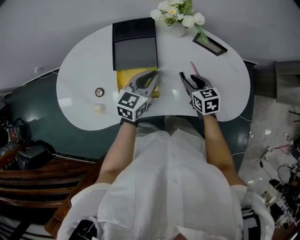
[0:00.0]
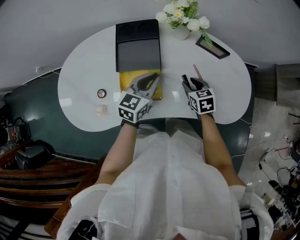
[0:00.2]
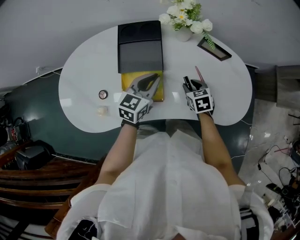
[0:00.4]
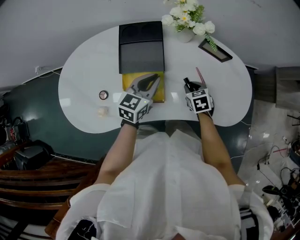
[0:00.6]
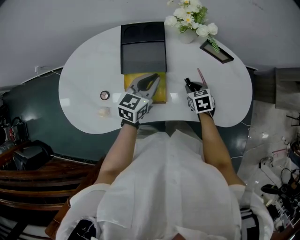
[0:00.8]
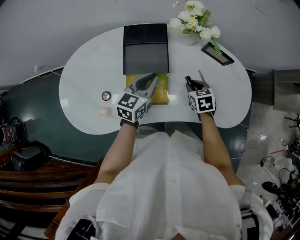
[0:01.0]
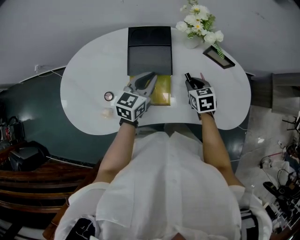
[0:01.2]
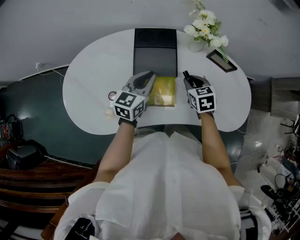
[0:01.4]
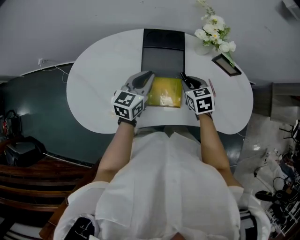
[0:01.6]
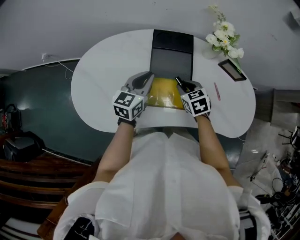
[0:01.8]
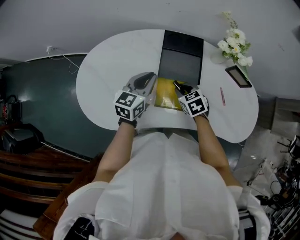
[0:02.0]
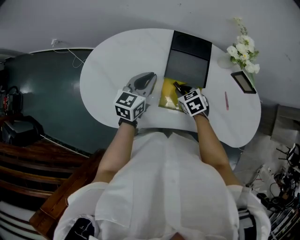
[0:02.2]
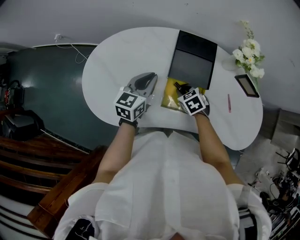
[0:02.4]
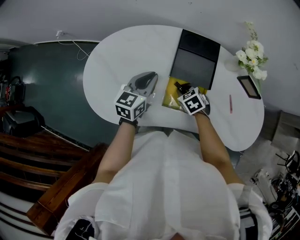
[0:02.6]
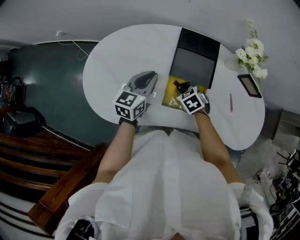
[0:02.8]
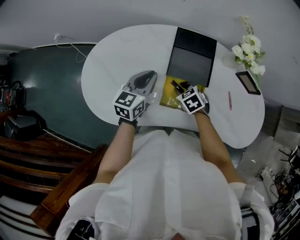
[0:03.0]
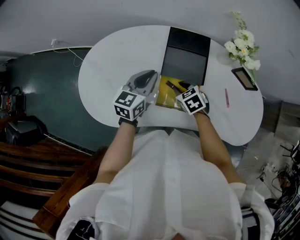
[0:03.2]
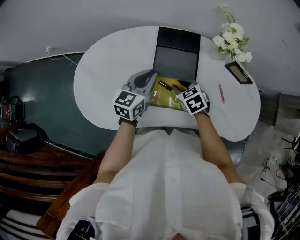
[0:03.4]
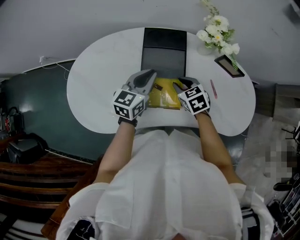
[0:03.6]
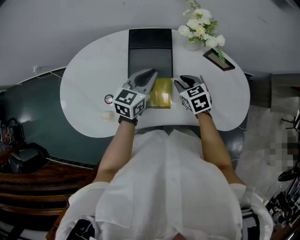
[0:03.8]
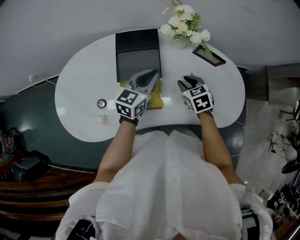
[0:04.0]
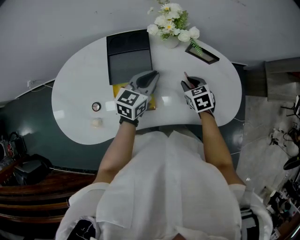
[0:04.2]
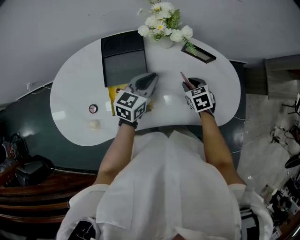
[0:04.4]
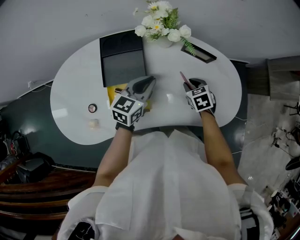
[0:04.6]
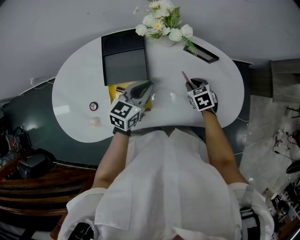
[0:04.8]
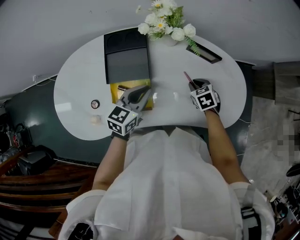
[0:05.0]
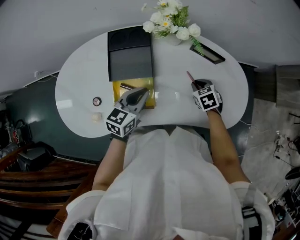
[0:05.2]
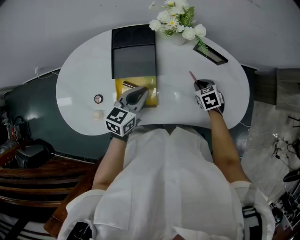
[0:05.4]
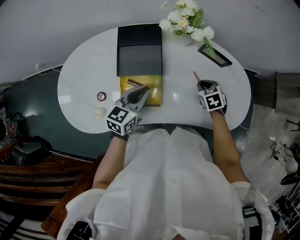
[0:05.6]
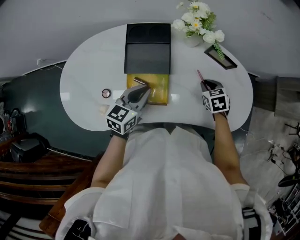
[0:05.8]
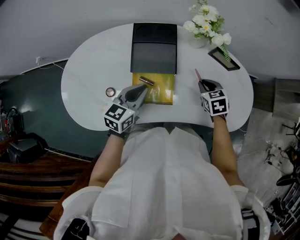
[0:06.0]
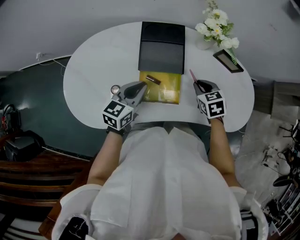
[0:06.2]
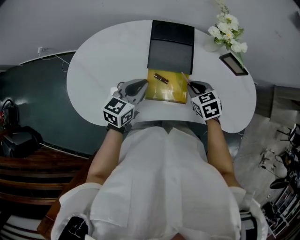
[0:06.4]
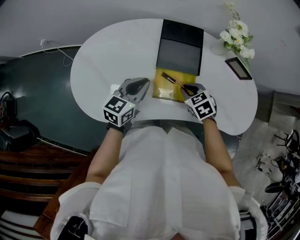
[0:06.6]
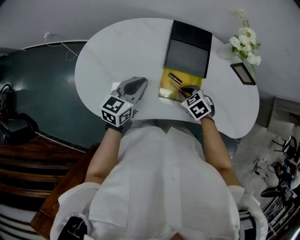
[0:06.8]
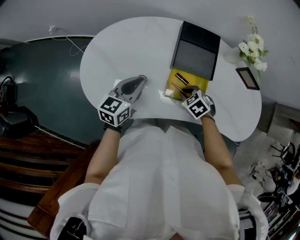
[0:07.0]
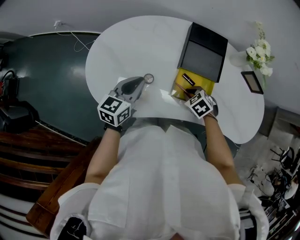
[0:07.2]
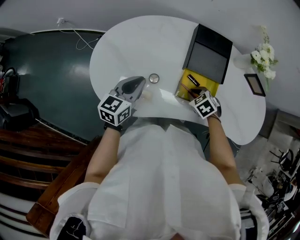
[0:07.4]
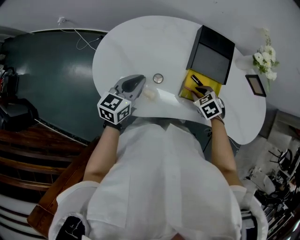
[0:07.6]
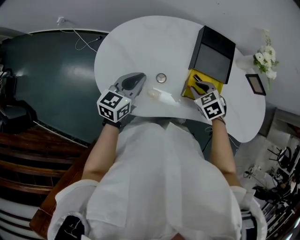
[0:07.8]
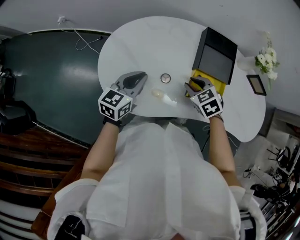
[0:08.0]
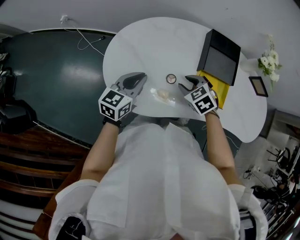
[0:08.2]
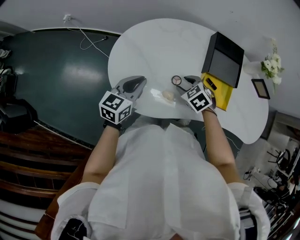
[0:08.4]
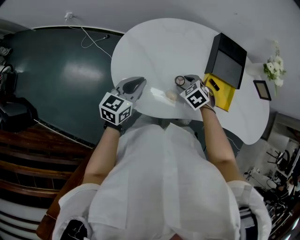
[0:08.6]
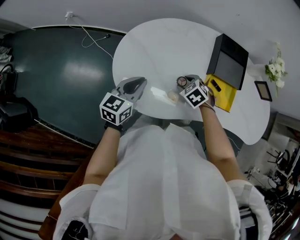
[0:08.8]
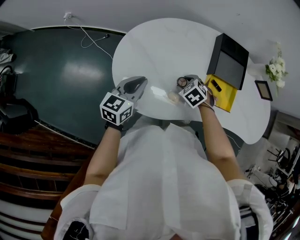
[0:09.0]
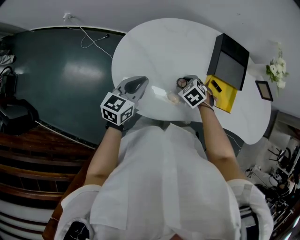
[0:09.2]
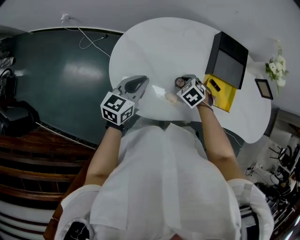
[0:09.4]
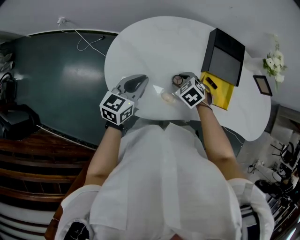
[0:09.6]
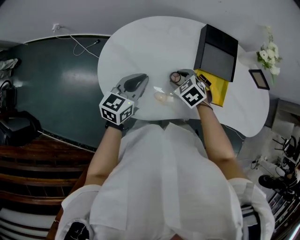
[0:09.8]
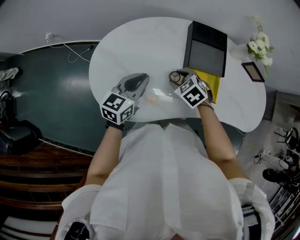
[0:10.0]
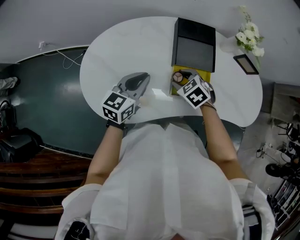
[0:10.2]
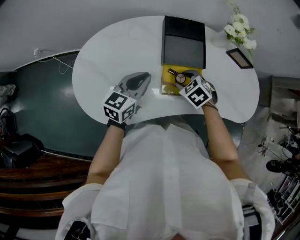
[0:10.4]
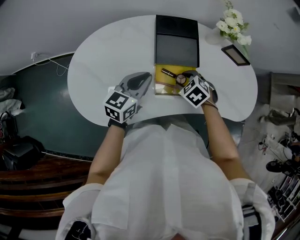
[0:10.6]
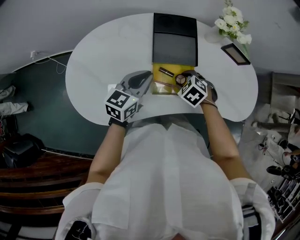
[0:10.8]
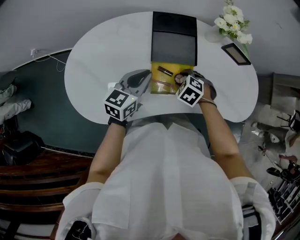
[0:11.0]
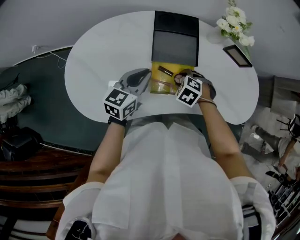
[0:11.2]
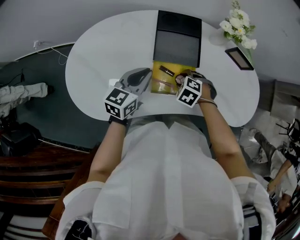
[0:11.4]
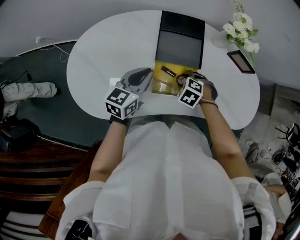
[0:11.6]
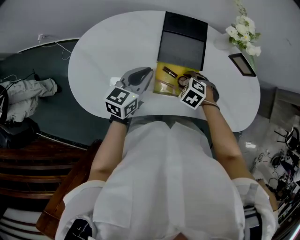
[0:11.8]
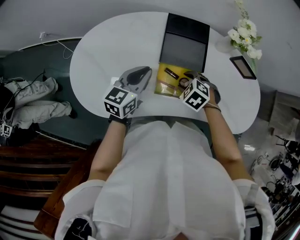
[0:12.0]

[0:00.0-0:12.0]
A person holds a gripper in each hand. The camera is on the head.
0:00.0 to 0:01.6: The two grippers go some 15 cm to the left.
0:01.6 to 0:03.0: The right gripper heads to the left and downward, covering some 15 cm, and swivels some 30 degrees, while the left gripper goes roughly 10 cm to the left.
0:03.0 to 0:04.4: The right gripper shifts by about 30 cm, and rotates approximately 30 degrees. The left gripper ends up roughly 30 cm from where it was, and turns by roughly 20 degrees.
0:04.4 to 0:06.0: The right gripper heads to the left, covering some 5 cm, while the left gripper moves to the left and backward, approximately 15 cm.
0:06.0 to 0:07.6: The right gripper moves some 25 cm, and rotates about 30 degrees. Meanwhile the left gripper ends up about 25 cm from where it was.
0:07.6 to 0:09.0: The right gripper goes some 20 cm to the left, and opens its fingers, while the left gripper shifts about 10 cm to the left.
0:09.0 to 0:10.4: Both grippers travel together to the right, roughly 20 cm.

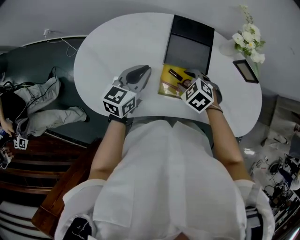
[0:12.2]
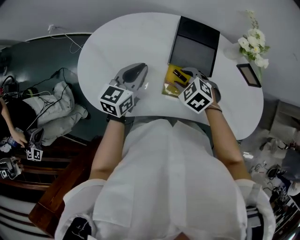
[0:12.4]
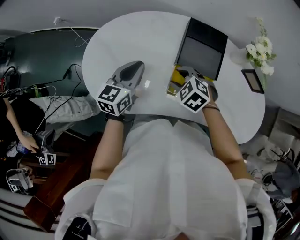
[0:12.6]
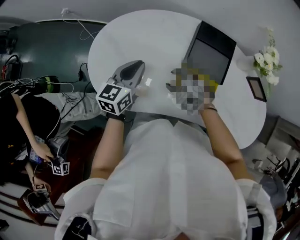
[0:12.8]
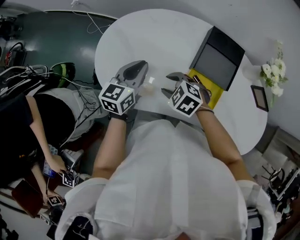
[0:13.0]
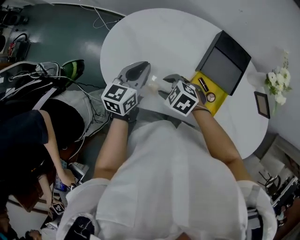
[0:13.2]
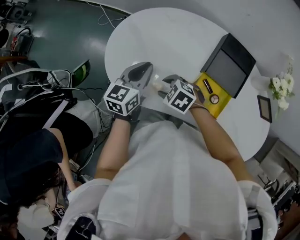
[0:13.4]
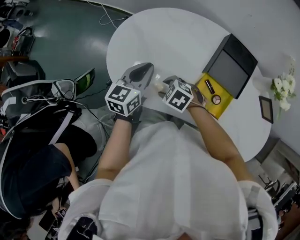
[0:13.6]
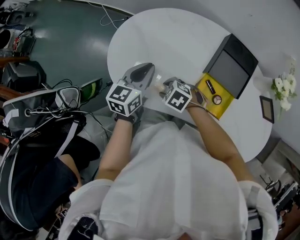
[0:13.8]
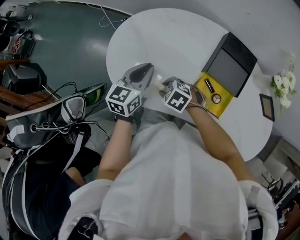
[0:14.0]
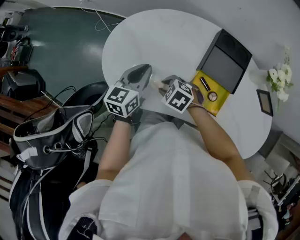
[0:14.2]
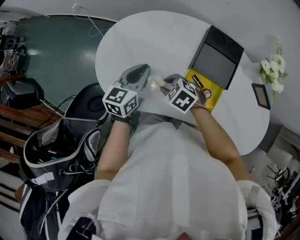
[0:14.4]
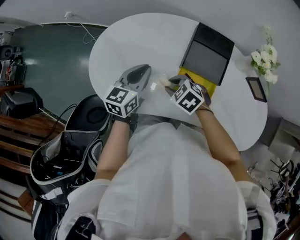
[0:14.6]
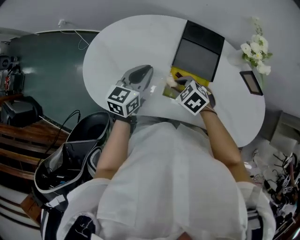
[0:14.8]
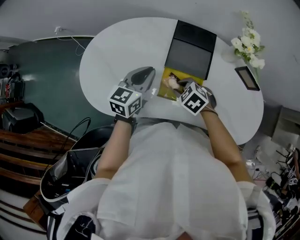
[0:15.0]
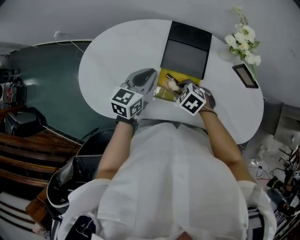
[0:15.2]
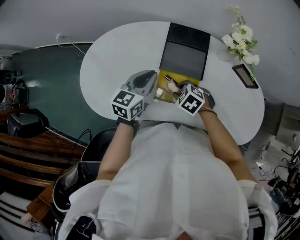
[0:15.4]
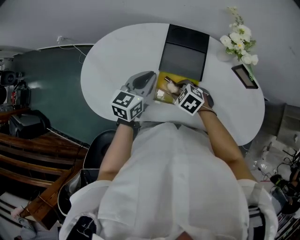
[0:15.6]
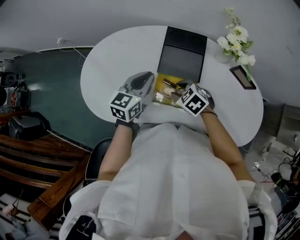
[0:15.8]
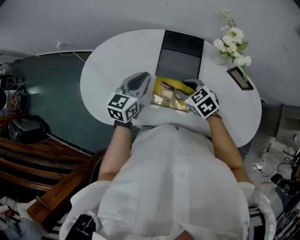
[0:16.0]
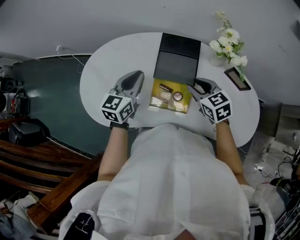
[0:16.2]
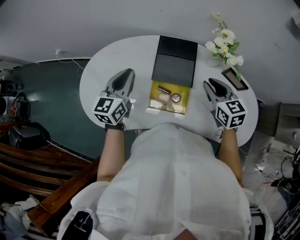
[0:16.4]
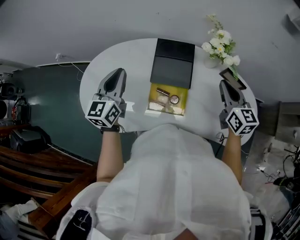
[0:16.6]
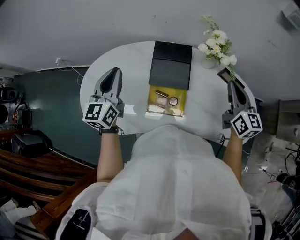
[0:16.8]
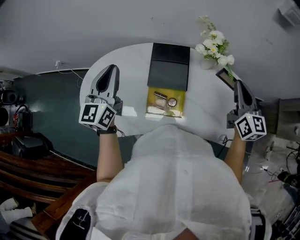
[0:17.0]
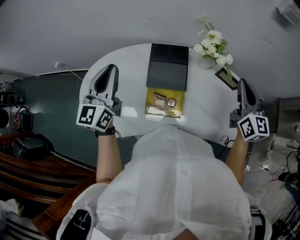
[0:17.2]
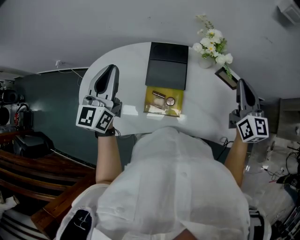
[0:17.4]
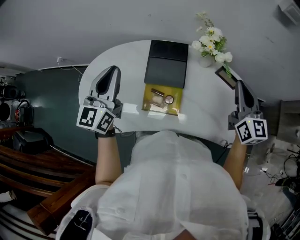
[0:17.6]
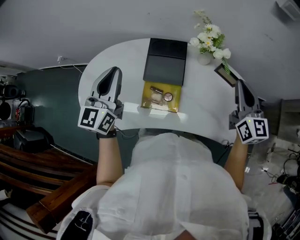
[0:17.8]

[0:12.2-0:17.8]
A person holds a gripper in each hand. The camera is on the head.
0:12.2 to 0:13.6: The right gripper shifts by about 25 cm, and swivels approximately 30 degrees. Meanwhile the left gripper moves some 15 cm, and turns by approximately 20 degrees.
0:13.6 to 0:15.0: The left gripper moves about 20 cm. Meanwhile the right gripper moves roughly 20 cm, and rotates approximately 20 degrees.
0:15.0 to 0:16.4: The right gripper heads to the right and upward, covering roughly 25 cm, and angles its fingers upward, by about 30 degrees, while the left gripper shifts about 10 cm upward.
0:16.4 to 0:17.8: The left gripper travels upward by some 10 cm. Meanwhile the right gripper is displaced to the right and upward by some 20 cm, and changes its angle by roughly 30 degrees.

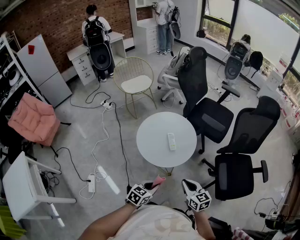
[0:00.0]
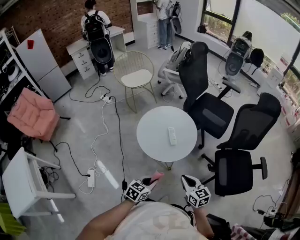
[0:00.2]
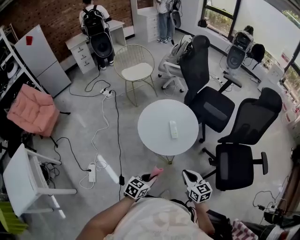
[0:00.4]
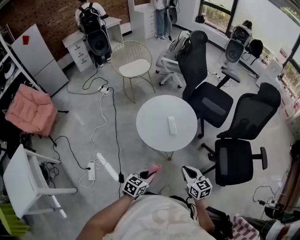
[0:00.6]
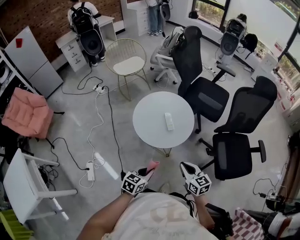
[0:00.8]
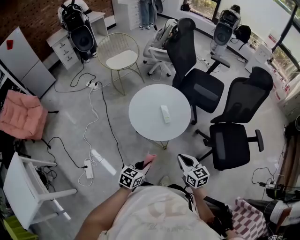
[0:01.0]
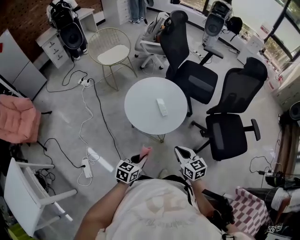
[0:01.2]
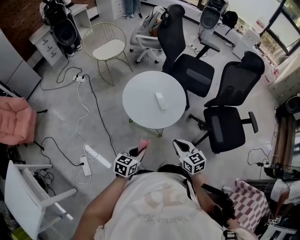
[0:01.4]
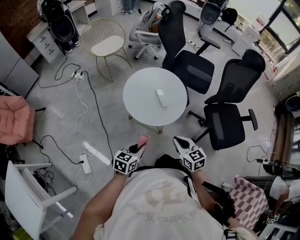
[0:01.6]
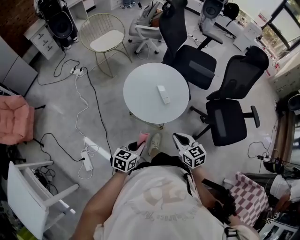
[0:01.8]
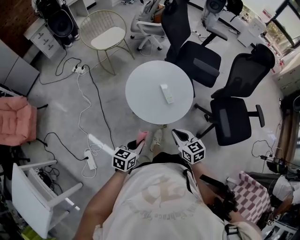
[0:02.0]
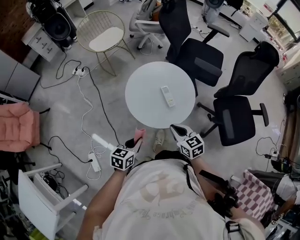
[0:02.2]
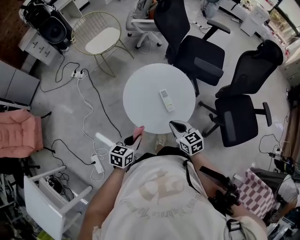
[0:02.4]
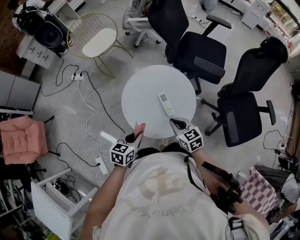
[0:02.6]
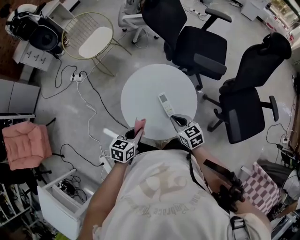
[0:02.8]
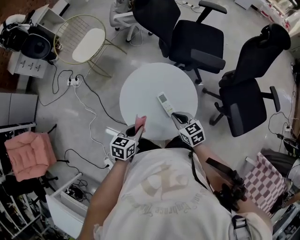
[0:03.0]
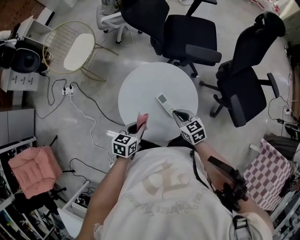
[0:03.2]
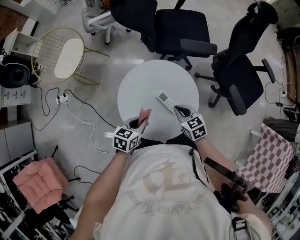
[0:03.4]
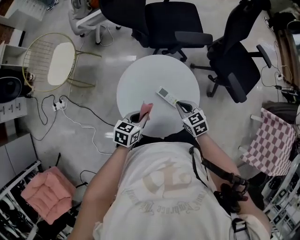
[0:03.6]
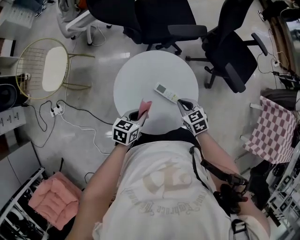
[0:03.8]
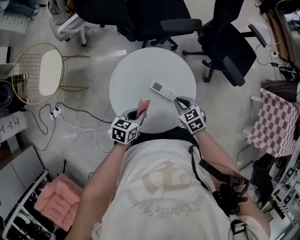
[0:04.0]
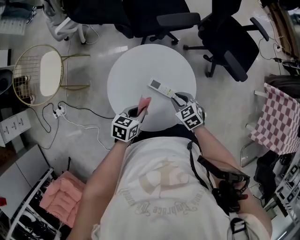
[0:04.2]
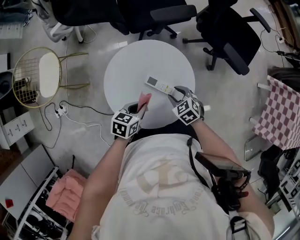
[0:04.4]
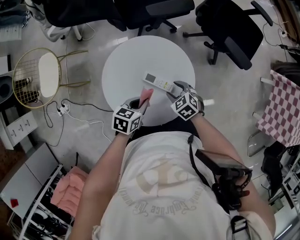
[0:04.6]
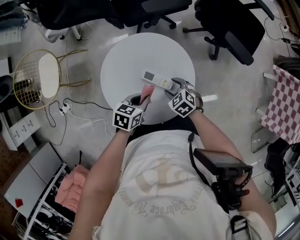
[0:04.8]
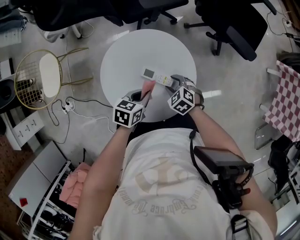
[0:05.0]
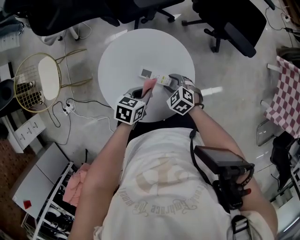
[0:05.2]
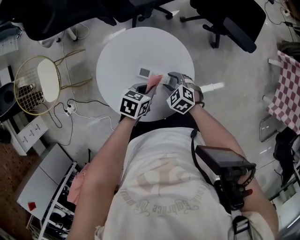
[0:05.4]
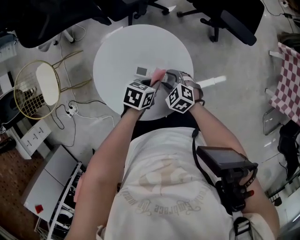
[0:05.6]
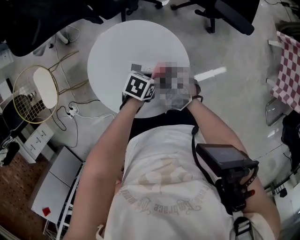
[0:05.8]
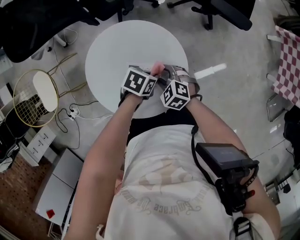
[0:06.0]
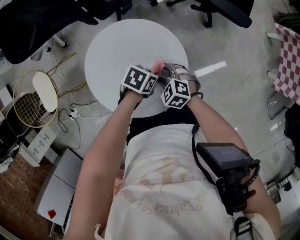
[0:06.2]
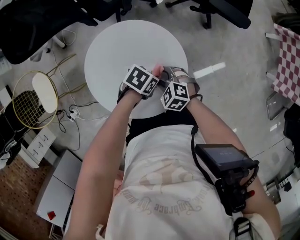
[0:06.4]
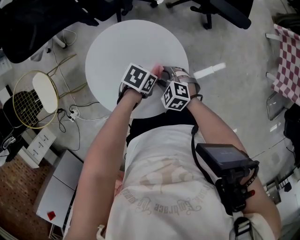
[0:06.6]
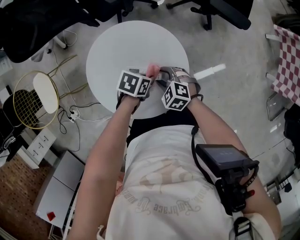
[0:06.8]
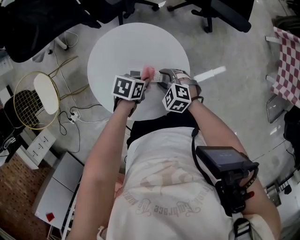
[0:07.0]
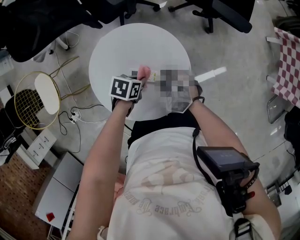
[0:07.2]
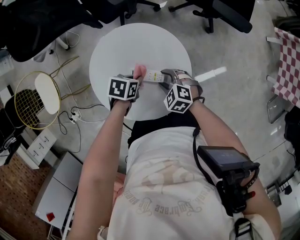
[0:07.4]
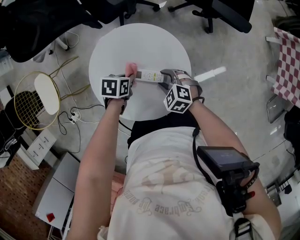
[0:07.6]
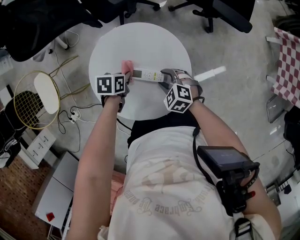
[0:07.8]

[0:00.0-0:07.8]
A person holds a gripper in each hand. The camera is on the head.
0:00.0 to 0:01.6: Both grippers travel together to the left, roughly 10 cm.
0:01.6 to 0:03.2: The grippers both shift forward by about 30 cm.
0:03.2 to 0:04.6: The right gripper moves downward, approximately 10 cm, turns by roughly 20 degrees, and opens. The left gripper changes place by some 10 cm, and changes its angle by some 30 degrees.
0:04.6 to 0:06.2: The left gripper changes place by about 15 cm, and swivels about 40 degrees.
0:06.2 to 0:07.8: The left gripper ends up about 15 cm from where it was, and swivels roughly 30 degrees.
